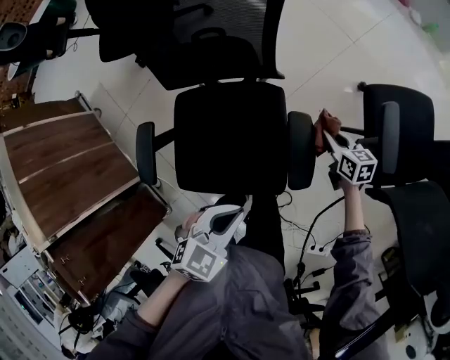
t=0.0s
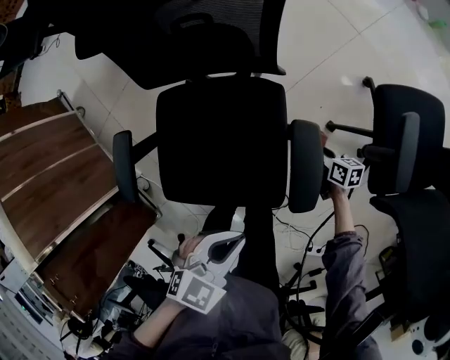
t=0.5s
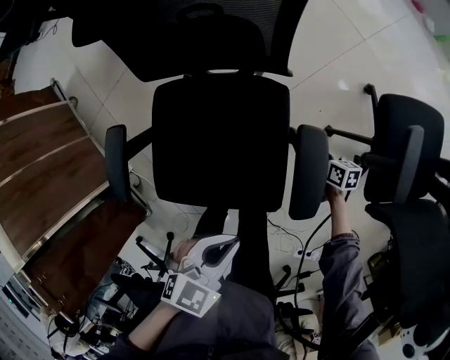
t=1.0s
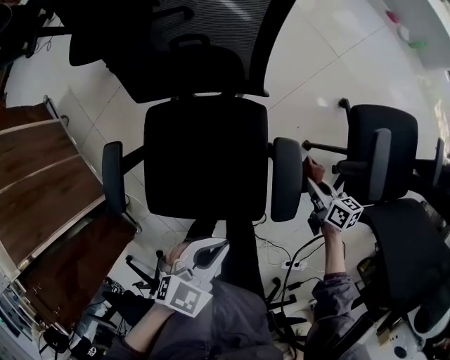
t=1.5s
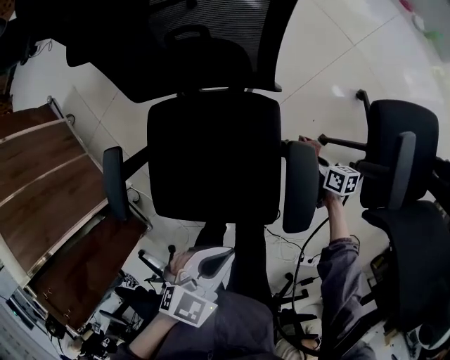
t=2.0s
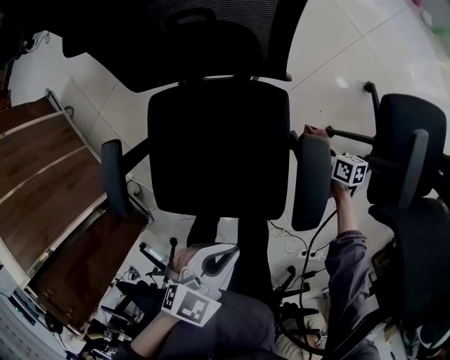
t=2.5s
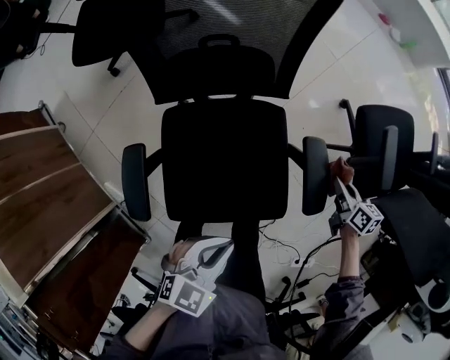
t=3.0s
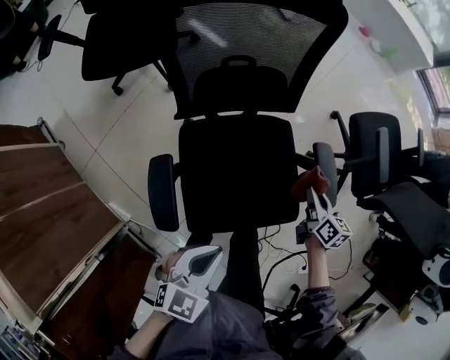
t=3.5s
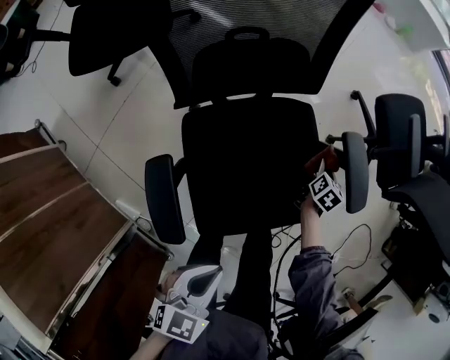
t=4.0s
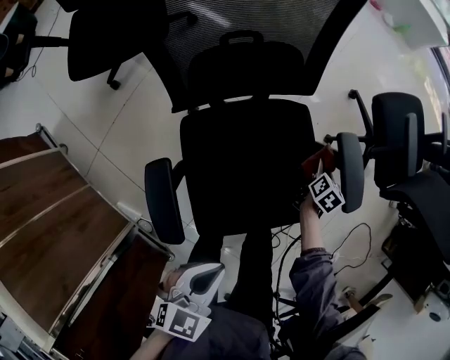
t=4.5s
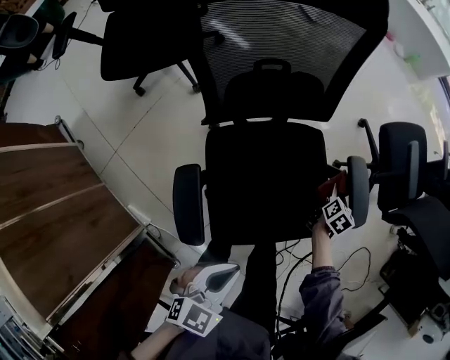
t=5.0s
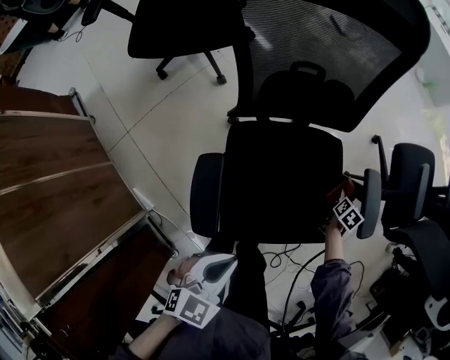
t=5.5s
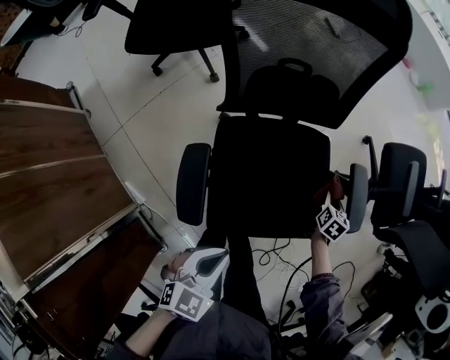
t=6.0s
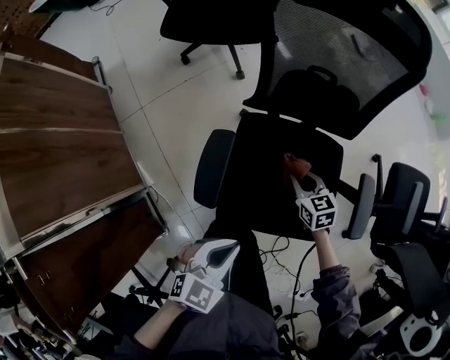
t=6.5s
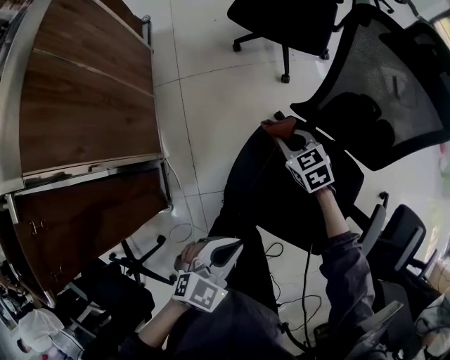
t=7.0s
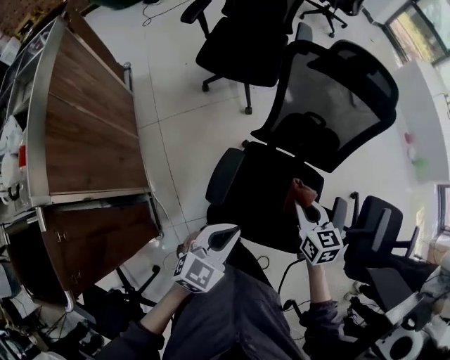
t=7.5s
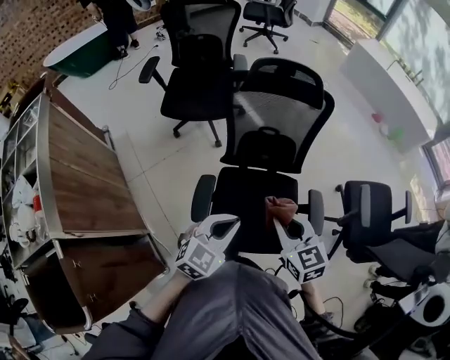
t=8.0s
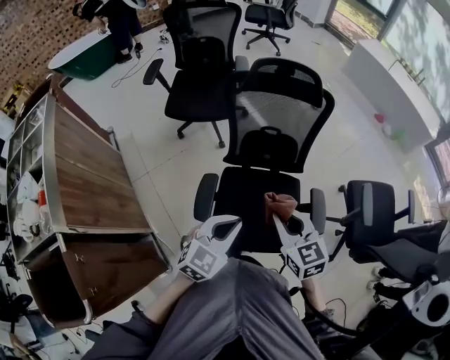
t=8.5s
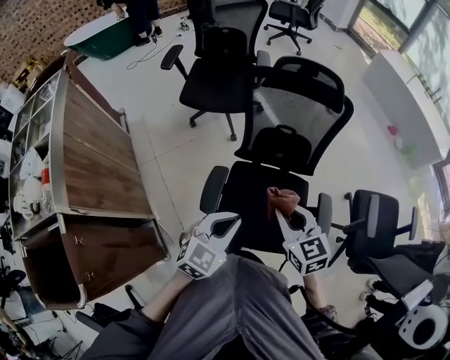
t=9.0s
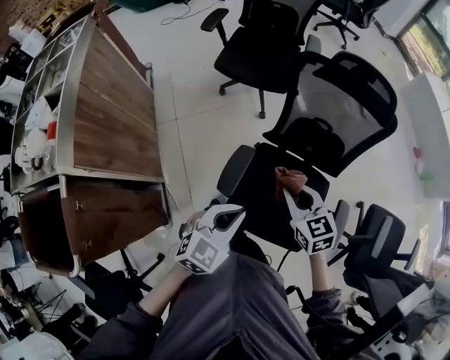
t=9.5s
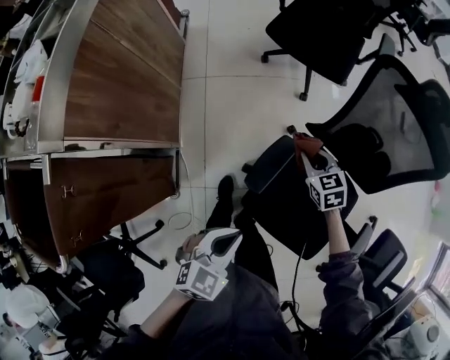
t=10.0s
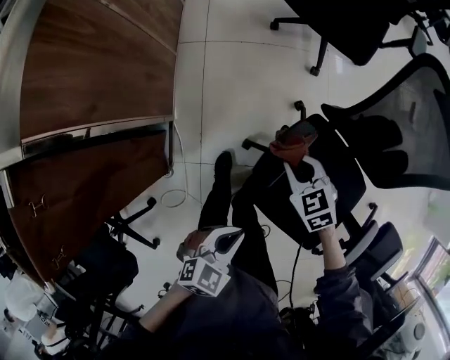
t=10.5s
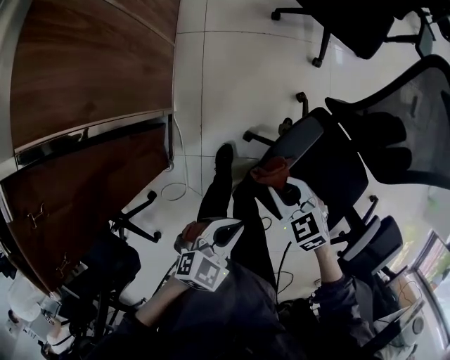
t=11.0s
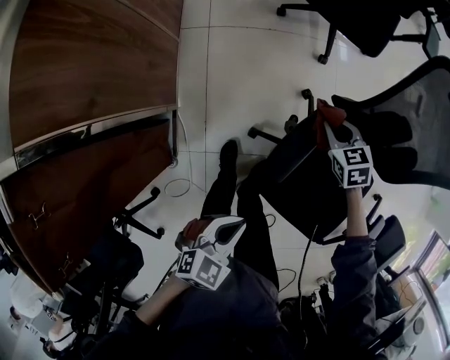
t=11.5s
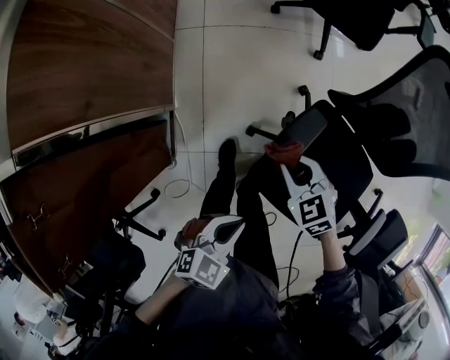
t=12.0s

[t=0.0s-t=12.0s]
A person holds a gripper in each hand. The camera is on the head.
t=0.0s to t=2.0s: The right gripper goes up and down, roughly 20 cm each way, reversing 2 times, and turns by approximately 20 degrees, while the left gripper heads downward, covering about 5 cm.
t=2.0s to t=4.0s: The left gripper moves some 25 cm. Meanwhile the right gripper goes upward and returns, roughly 25 cm each way, and turns by some 60 degrees.
t=4.0s to t=6.0s: The right gripper moves up and down over some 5 cm, changing direction 2 times, and changes its angle by about 20 degrees.
t=6.0s to t=8.0s: The left gripper moves upward, some 20 cm, and changes its angle by roughly 20 degrees, while the right gripper heads upward, covering approximately 40 cm, and turns by about 60 degrees.
t=8.0s to t=10.0s: The right gripper goes about 25 cm downward, and changes its angle by roughly 40 degrees, while the left gripper shifts by approximately 20 cm, and swivels roughly 40 degrees.
t=10.0s to t=12.0s: The left gripper moves downward, approximately 10 cm, while the right gripper swings forward and backward, some 20 cm each way, with 2 reversals.

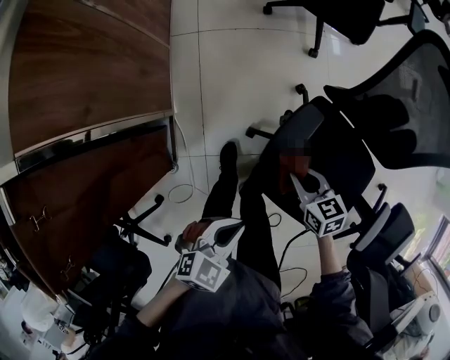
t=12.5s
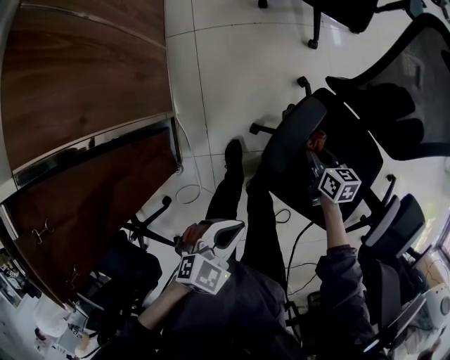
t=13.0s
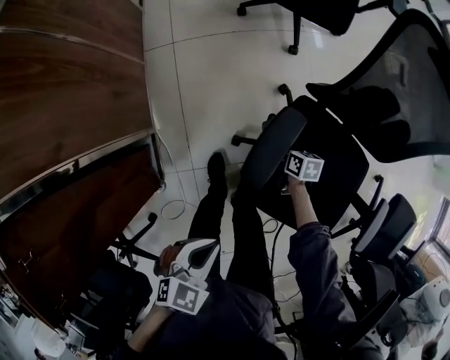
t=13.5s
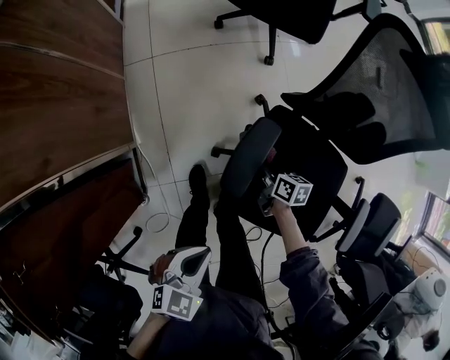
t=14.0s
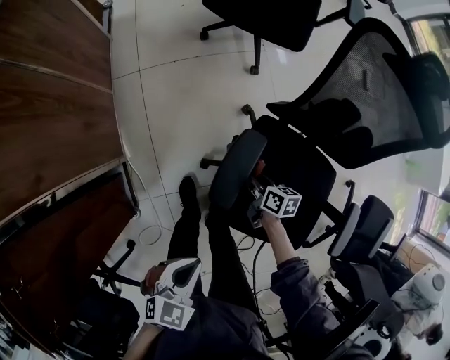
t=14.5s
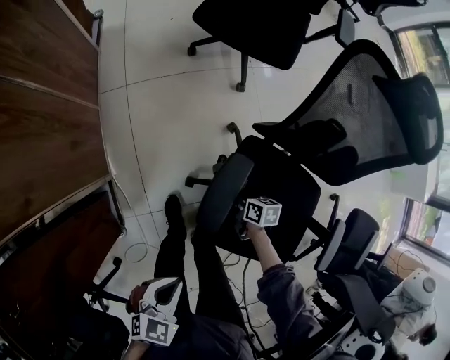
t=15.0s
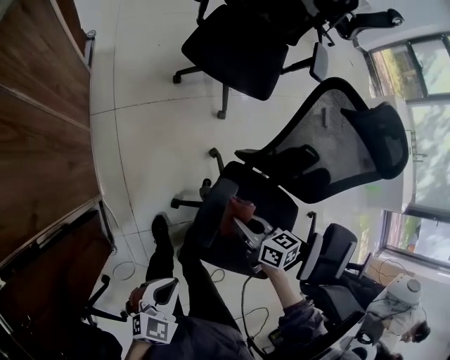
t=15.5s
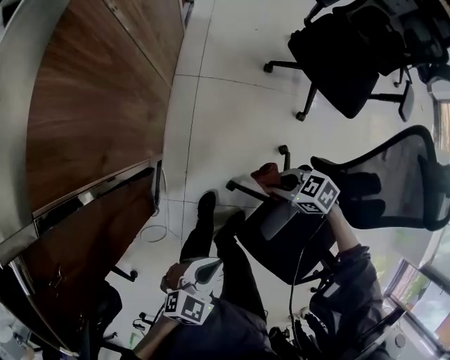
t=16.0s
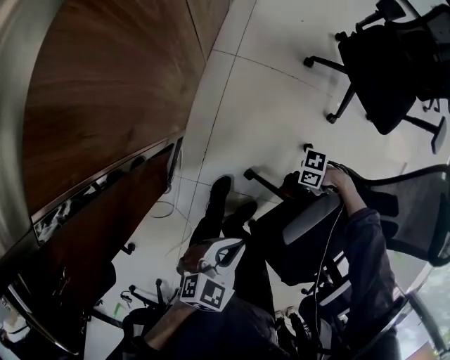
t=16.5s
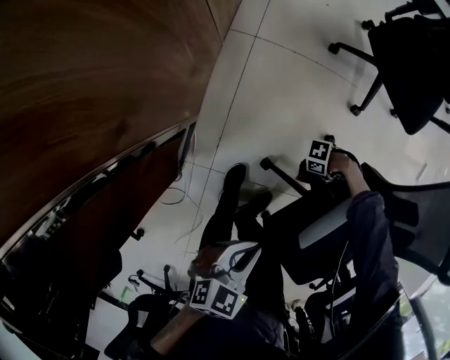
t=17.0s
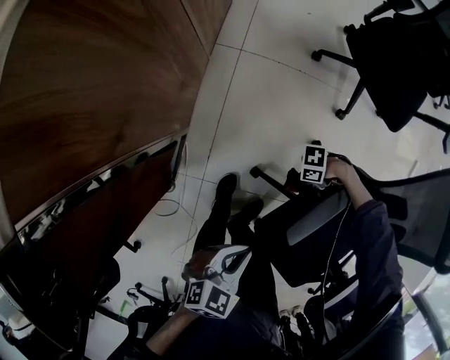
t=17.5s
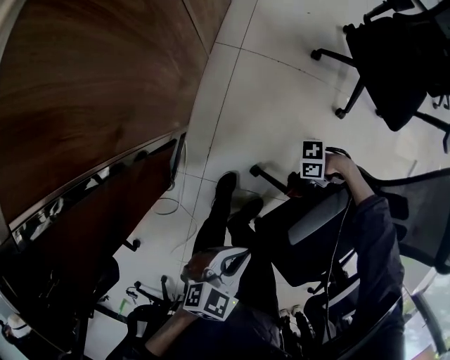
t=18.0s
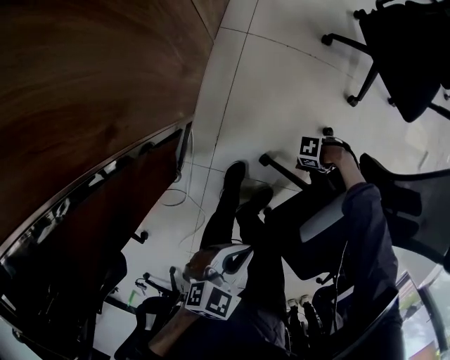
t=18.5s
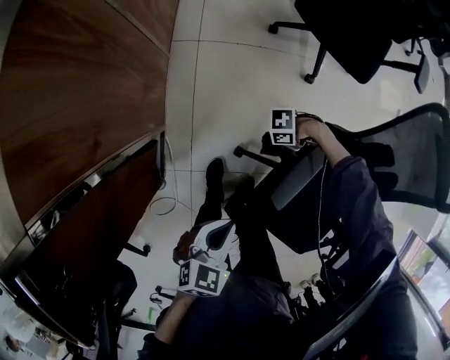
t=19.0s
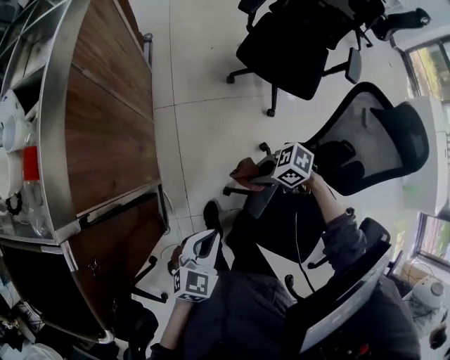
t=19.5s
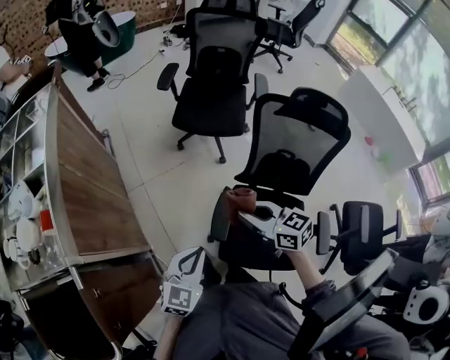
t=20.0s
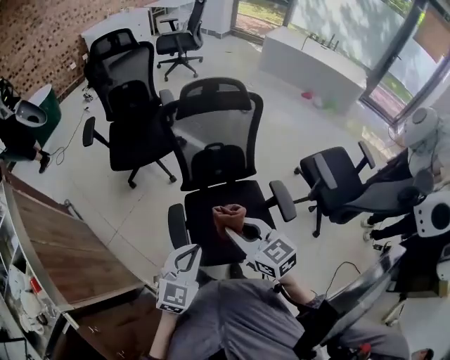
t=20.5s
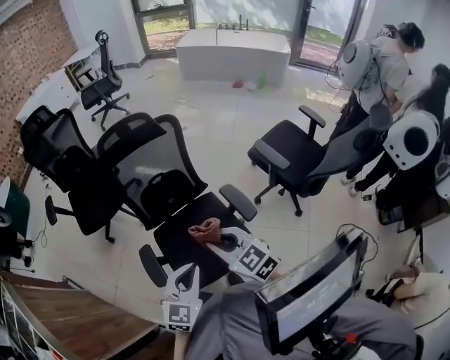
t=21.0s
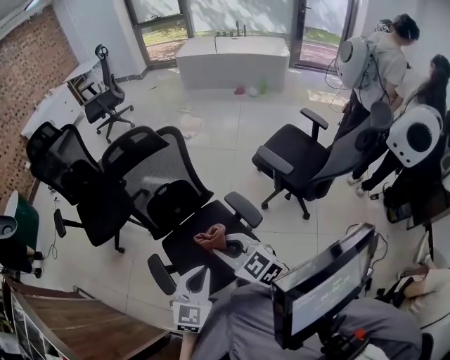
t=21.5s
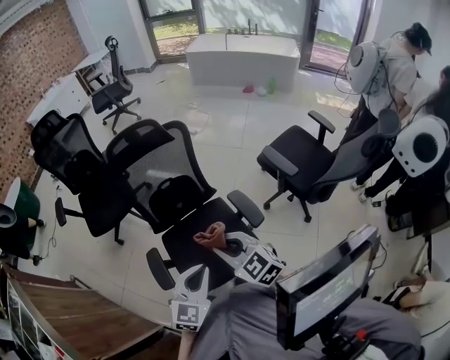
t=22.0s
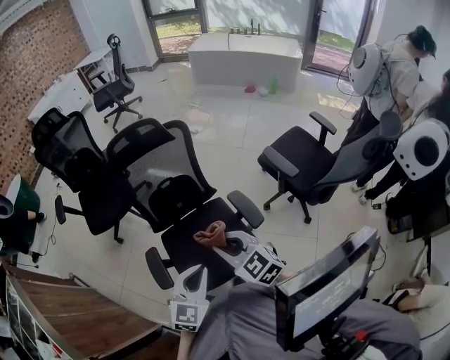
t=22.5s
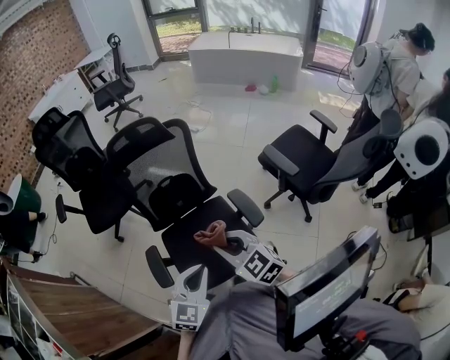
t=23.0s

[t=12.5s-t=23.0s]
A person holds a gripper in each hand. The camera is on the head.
t=12.5s to t=14.5s: The right gripper moves downward and forward, roughly 15 cm, and rotates some 40 degrees.
t=14.5s to t=16.5s: The left gripper moves some 15 cm, and swivels about 20 degrees; the right gripper moves up and down over about 20 cm, changing direction 2 times, and changes its angle by some 120 degrees.
t=16.5s to t=19.0s: The right gripper swings up and down, approximately 10 cm each way, with 3 reversals.
t=19.0s to t=21.0s: The left gripper moves some 40 cm, and changes its angle by about 70 degrees, while the right gripper goes approximately 50 cm upward, and swivels roughly 140 degrees.
t=21.0s to t=23.0s: There are only small adjustments of the grippers.

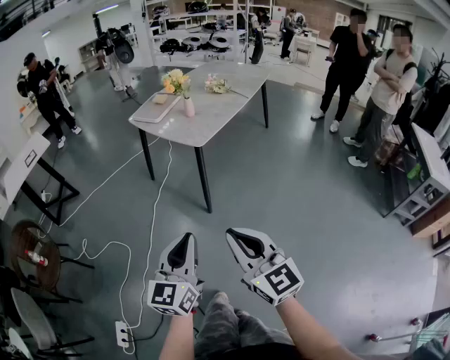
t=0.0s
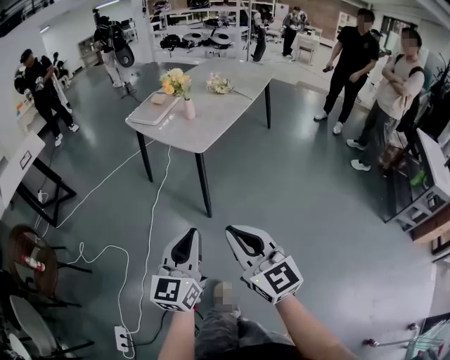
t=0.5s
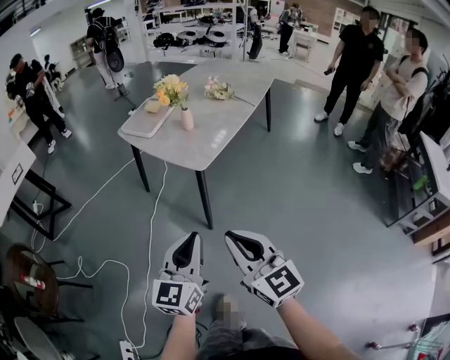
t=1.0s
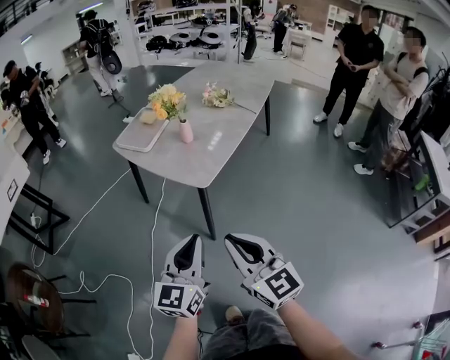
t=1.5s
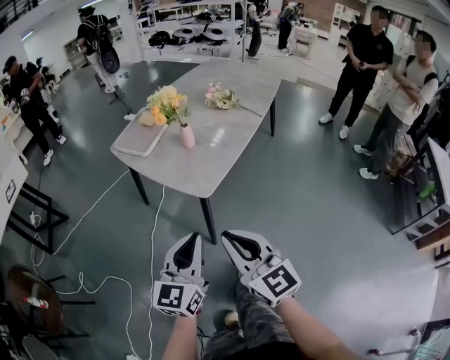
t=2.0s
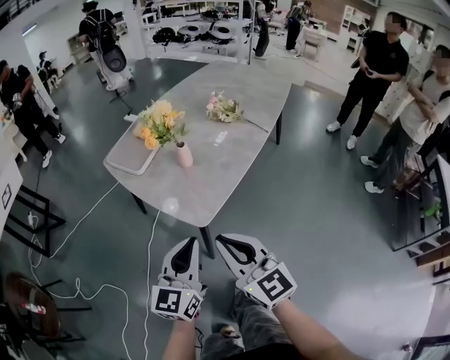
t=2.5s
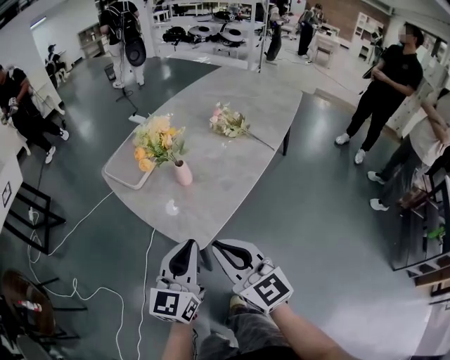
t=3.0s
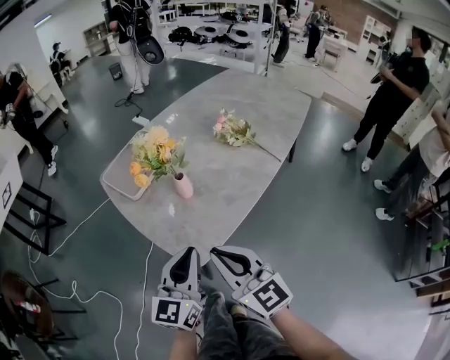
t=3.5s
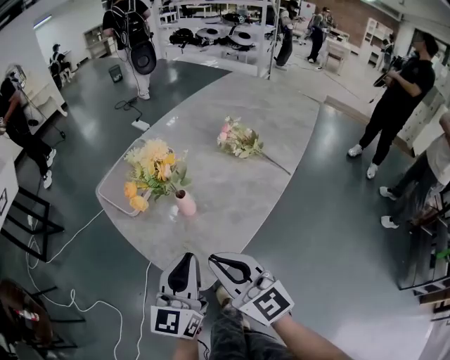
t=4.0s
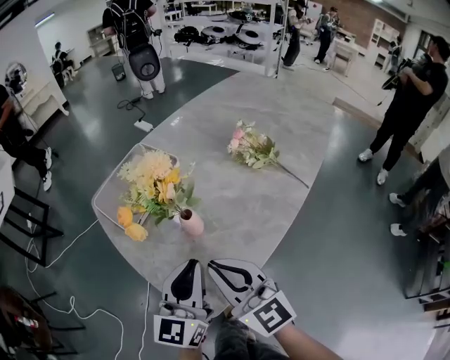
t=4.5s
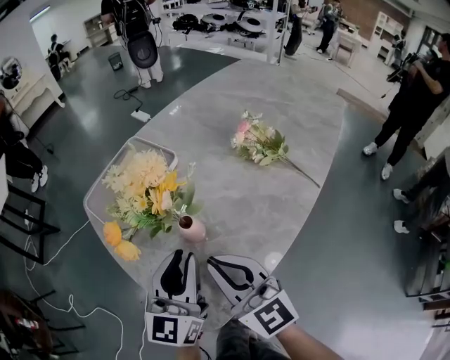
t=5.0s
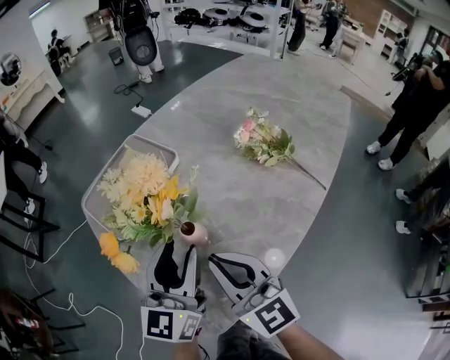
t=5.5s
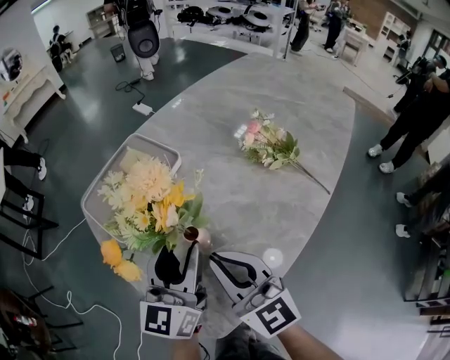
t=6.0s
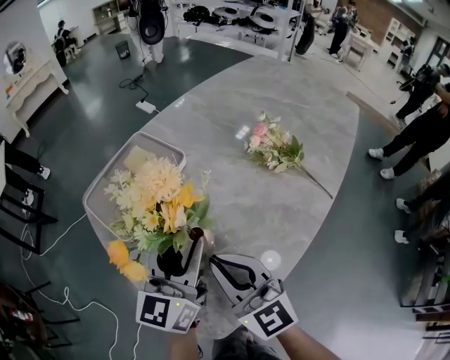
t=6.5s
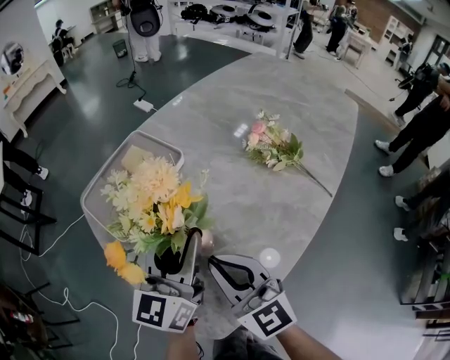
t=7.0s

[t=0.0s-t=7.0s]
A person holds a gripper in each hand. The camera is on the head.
t=0.0s to t=2.0s: The grippers both shift forward by roughly 30 cm.
t=2.0s to t=3.5s: The two grippers go approximately 20 cm forward.
t=3.5s to t=5.0s: The two grippers go roughly 15 cm forward.
t=5.0s to t=7.0s: The left gripper shifts approximately 5 cm forward, and opens.
